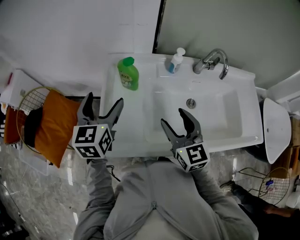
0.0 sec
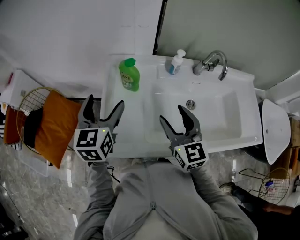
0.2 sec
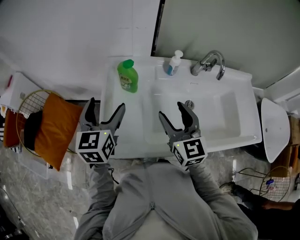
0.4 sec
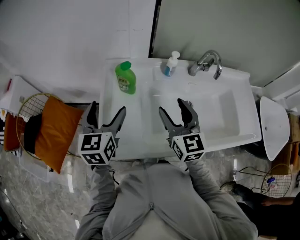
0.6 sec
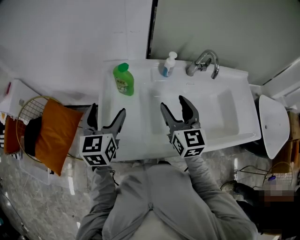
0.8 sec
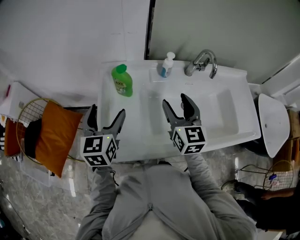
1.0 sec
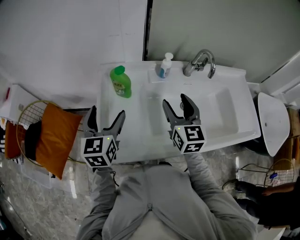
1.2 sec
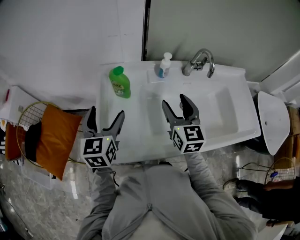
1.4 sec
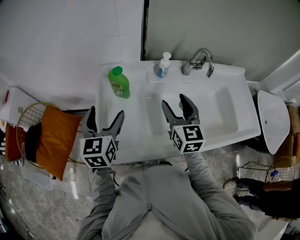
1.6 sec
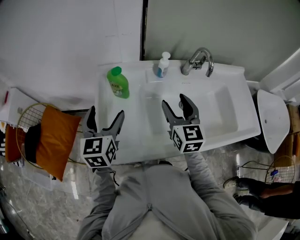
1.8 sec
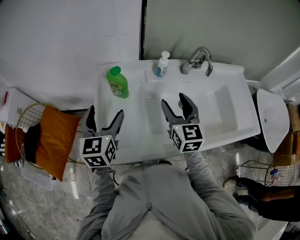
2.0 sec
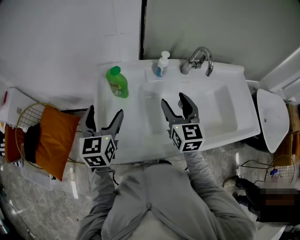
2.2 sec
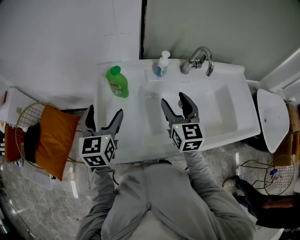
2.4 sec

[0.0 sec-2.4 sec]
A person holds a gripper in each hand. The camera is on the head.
0.0 sec to 1.2 sec: The right gripper travels forward by approximately 5 cm.
1.2 sec to 2.4 sec: Neither gripper changes place.

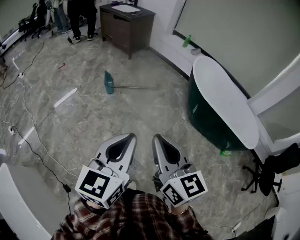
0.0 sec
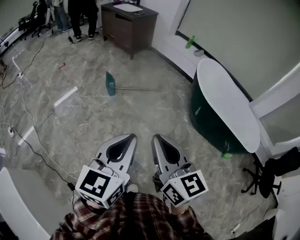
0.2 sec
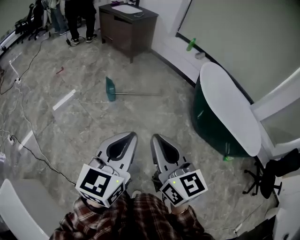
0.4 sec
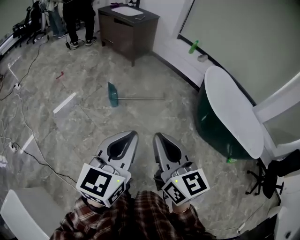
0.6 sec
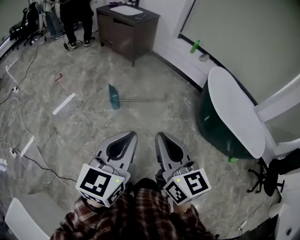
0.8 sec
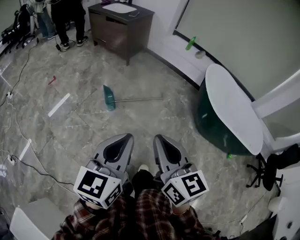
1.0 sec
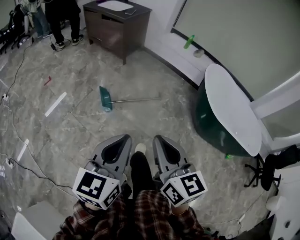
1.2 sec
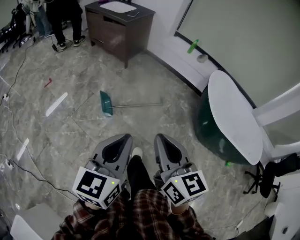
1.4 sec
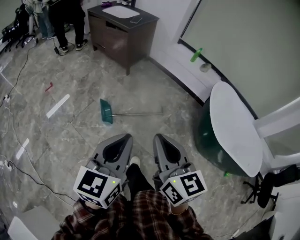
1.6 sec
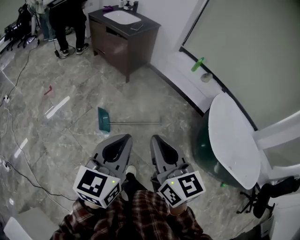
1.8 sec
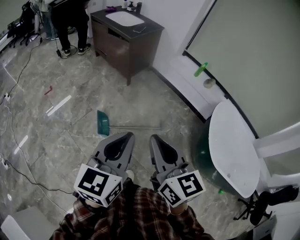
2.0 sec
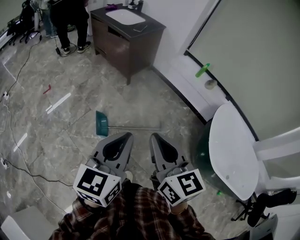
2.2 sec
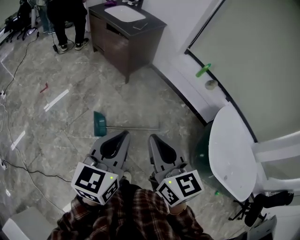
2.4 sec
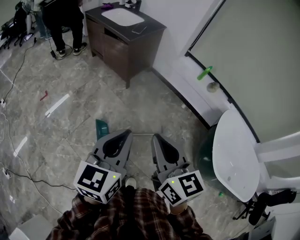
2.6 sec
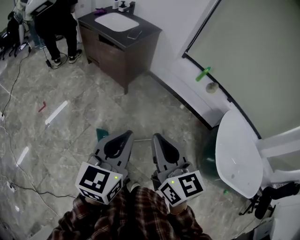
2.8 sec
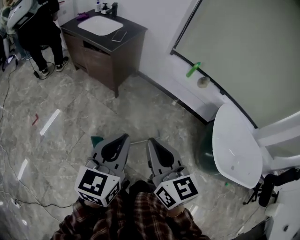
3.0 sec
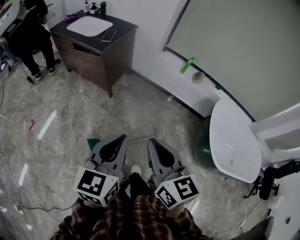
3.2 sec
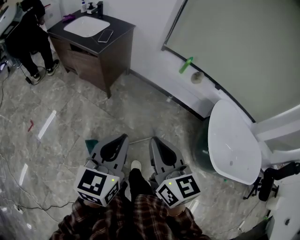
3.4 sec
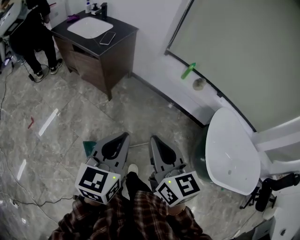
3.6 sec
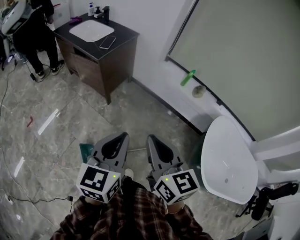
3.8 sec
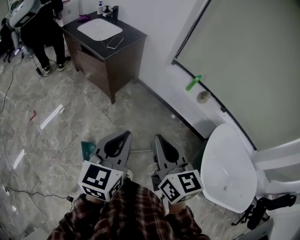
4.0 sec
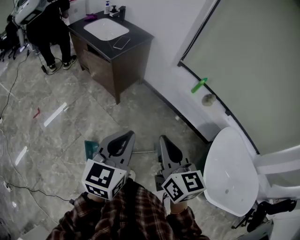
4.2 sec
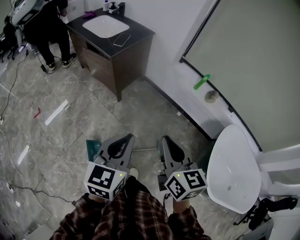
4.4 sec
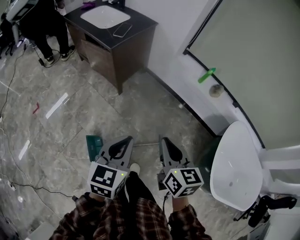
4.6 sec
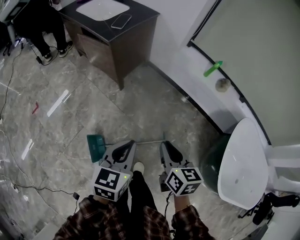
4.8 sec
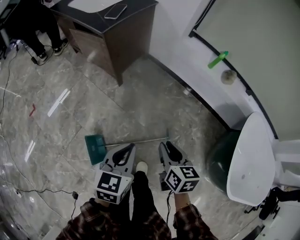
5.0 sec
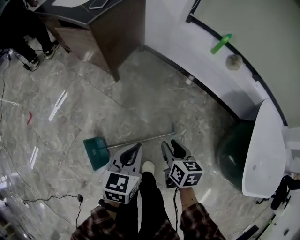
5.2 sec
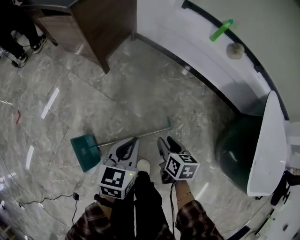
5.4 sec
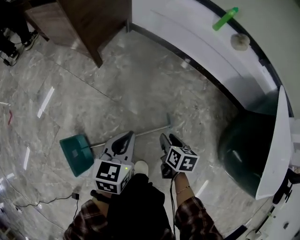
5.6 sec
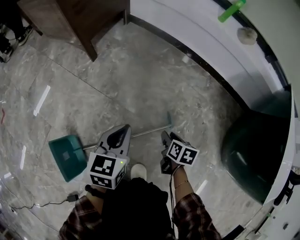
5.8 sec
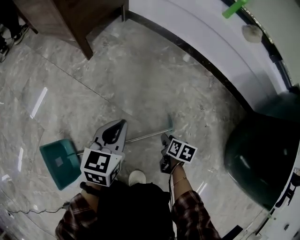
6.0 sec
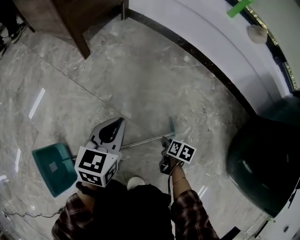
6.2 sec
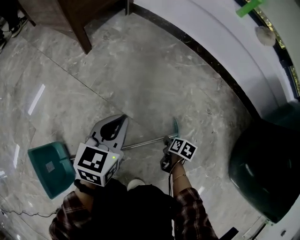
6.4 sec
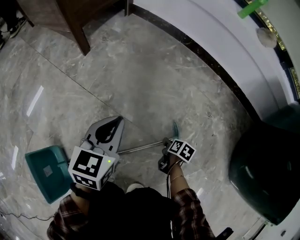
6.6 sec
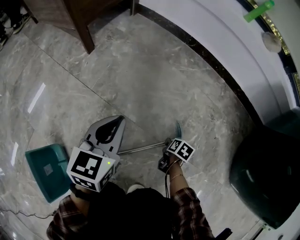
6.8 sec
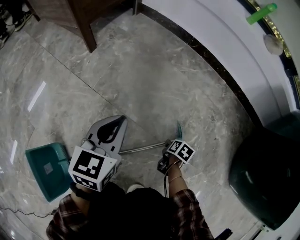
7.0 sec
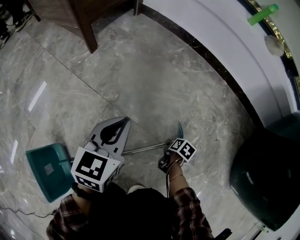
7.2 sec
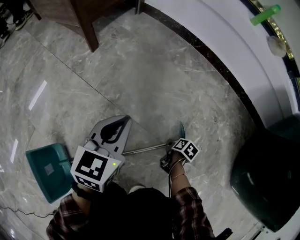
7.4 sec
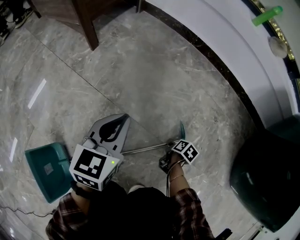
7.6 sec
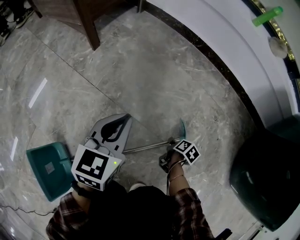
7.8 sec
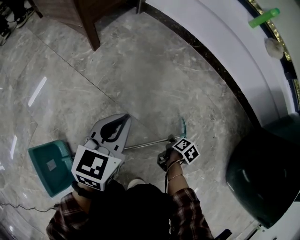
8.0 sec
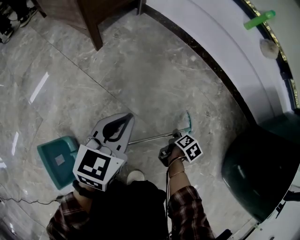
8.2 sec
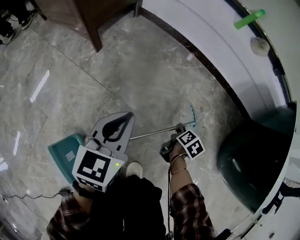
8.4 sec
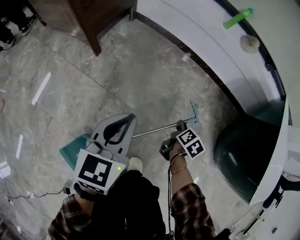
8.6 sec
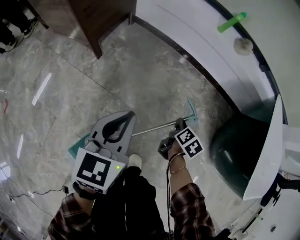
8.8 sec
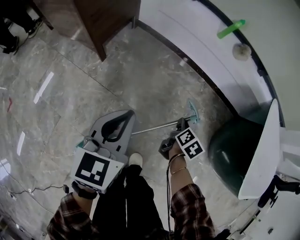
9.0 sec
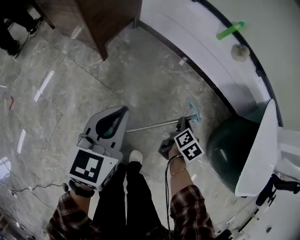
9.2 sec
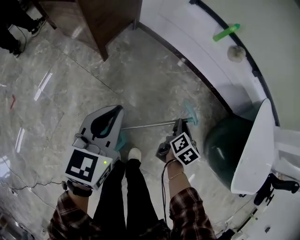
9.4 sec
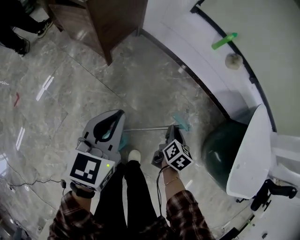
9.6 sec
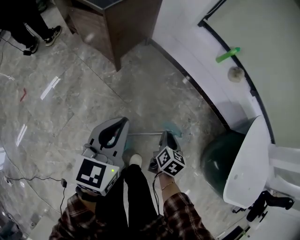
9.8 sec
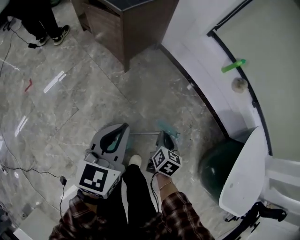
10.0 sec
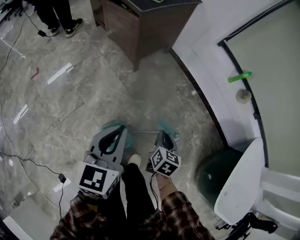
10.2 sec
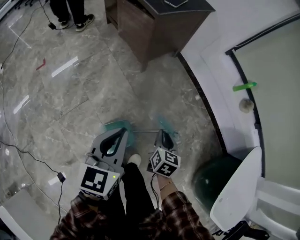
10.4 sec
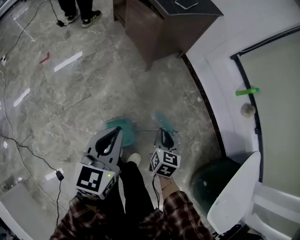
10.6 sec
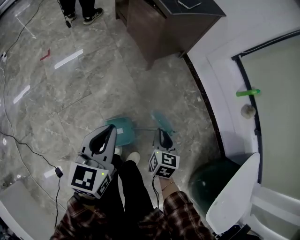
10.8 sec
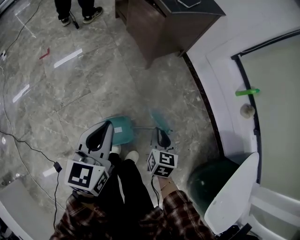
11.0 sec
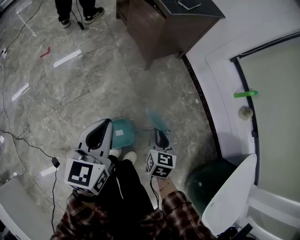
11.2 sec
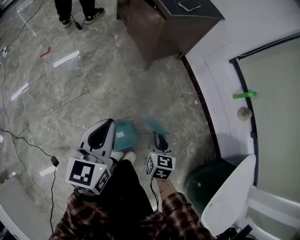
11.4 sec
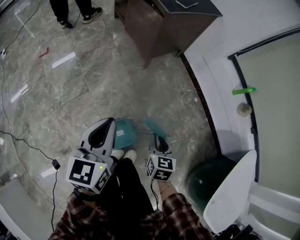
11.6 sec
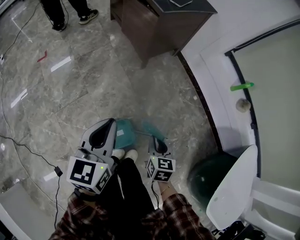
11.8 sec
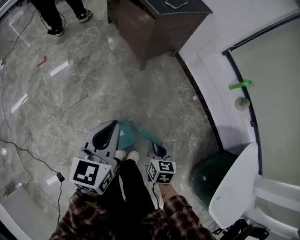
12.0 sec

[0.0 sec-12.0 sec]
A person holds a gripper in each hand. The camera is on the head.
0.0 sec to 1.6 sec: The pair of grippers is taken forward, some 50 cm.
1.6 sec to 3.0 sec: The grippers both shift forward by approximately 35 cm.
3.0 sec to 4.4 sec: Both grippers move forward and to the right, about 15 cm.
4.4 sec to 6.0 sec: The two grippers go approximately 80 cm downward. The right gripper points its fingers roughly 40 degrees further downward, and opens its fingers.
6.0 sec to 7.6 sec: The right gripper goes about 15 cm downward, and rotates roughly 20 degrees. Meanwhile the left gripper moves downward, about 5 cm.
7.6 sec to 9.0 sec: The grippers both shift upward by some 40 cm. The right gripper swivels some 30 degrees.
9.0 sec to 10.4 sec: The left gripper shifts by about 25 cm, and changes its angle by roughly 30 degrees. Meanwhile the right gripper ends up about 30 cm from where it was, and twists about 40 degrees counterclockwise, seen from behind.
10.4 sec to 12.0 sec: The right gripper travels backward by about 10 cm.

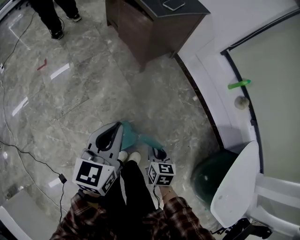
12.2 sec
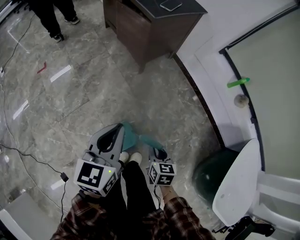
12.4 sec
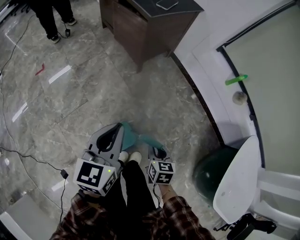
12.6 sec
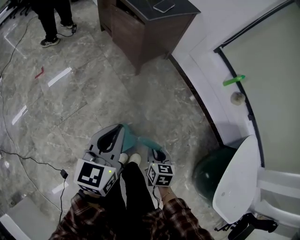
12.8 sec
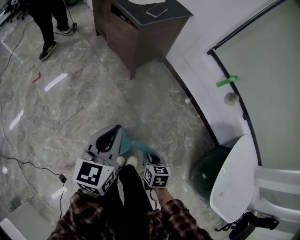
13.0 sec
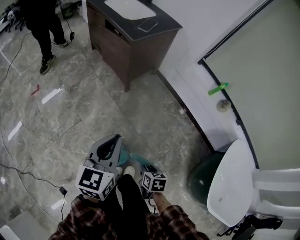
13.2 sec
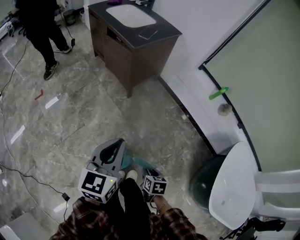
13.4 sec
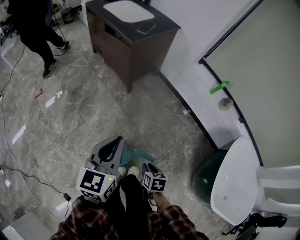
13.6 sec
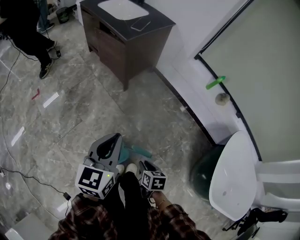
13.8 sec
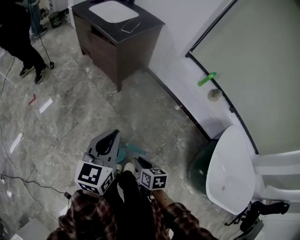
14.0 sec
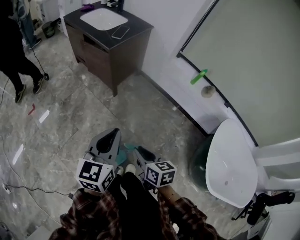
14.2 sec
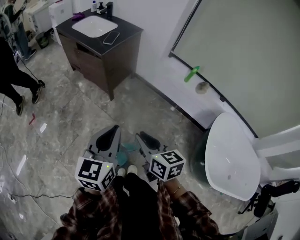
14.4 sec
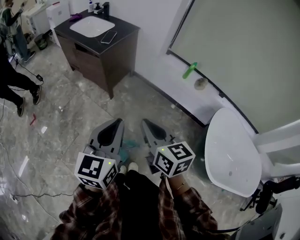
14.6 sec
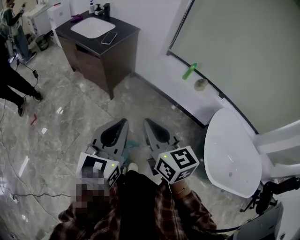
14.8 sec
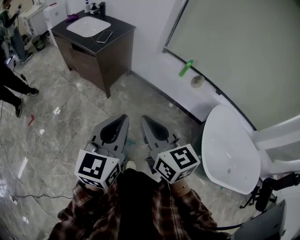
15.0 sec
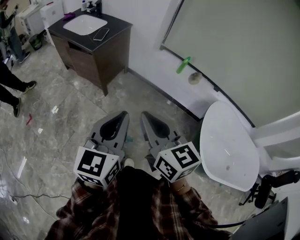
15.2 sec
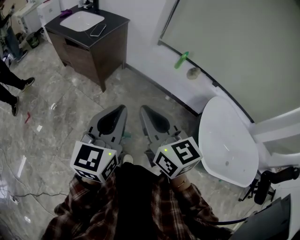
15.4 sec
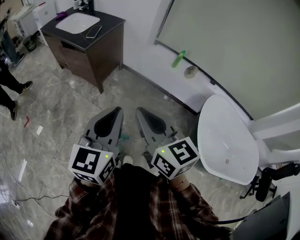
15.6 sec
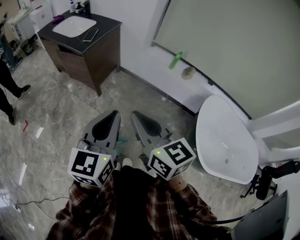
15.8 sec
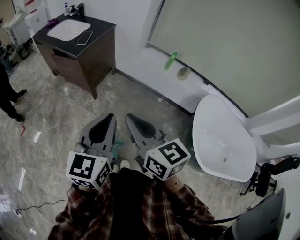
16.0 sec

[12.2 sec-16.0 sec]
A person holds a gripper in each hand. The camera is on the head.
12.2 sec to 13.4 sec: The left gripper shifts approximately 10 cm upward. The right gripper heads backward, covering roughly 5 cm.
13.4 sec to 14.8 sec: The left gripper is displaced upward and to the right by approximately 20 cm. The right gripper shifts about 40 cm upward, and tips its fingers upward by approximately 50 degrees.
14.8 sec to 16.0 sec: The grippers stay close to where they were, moving slightly.

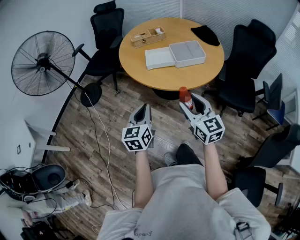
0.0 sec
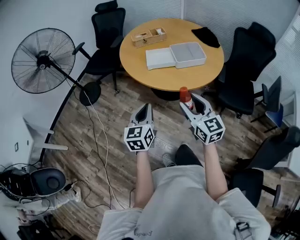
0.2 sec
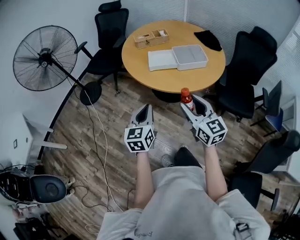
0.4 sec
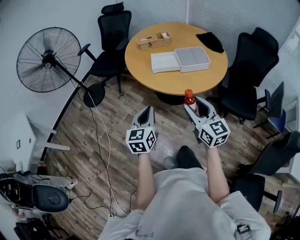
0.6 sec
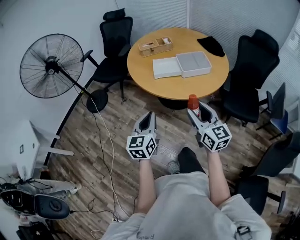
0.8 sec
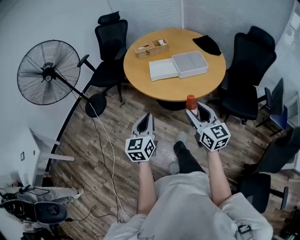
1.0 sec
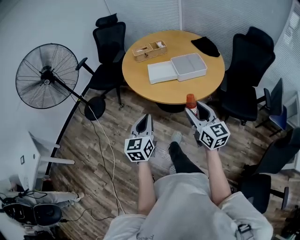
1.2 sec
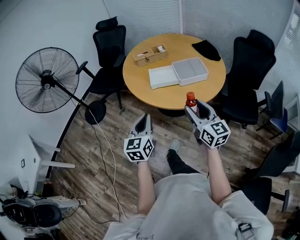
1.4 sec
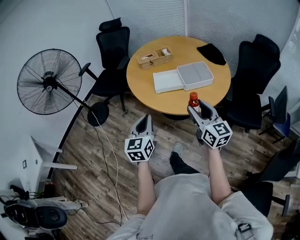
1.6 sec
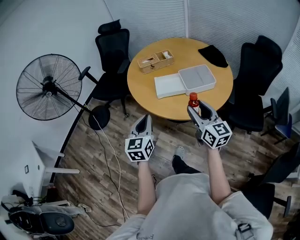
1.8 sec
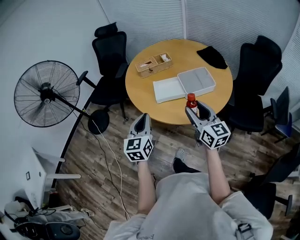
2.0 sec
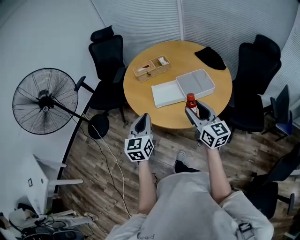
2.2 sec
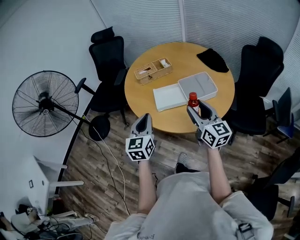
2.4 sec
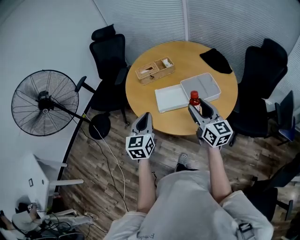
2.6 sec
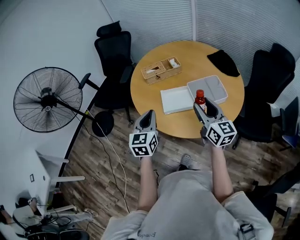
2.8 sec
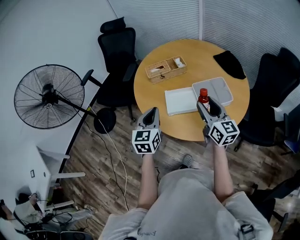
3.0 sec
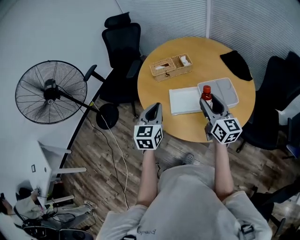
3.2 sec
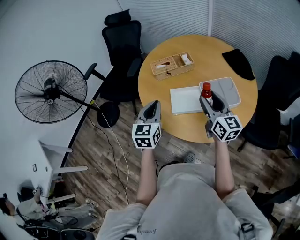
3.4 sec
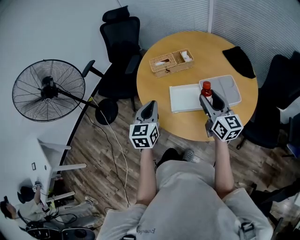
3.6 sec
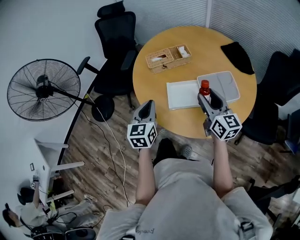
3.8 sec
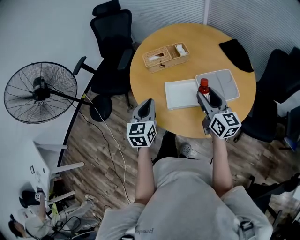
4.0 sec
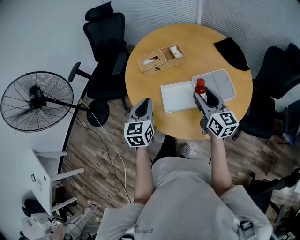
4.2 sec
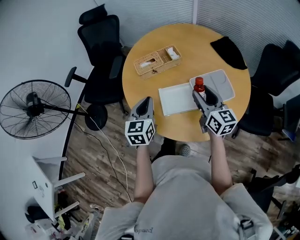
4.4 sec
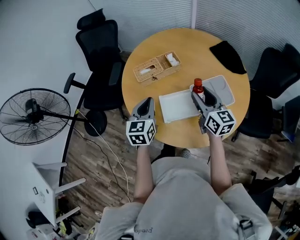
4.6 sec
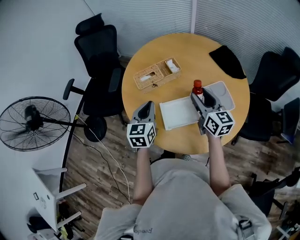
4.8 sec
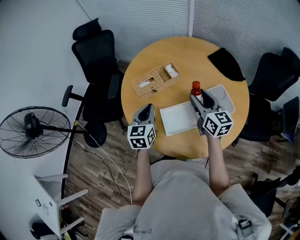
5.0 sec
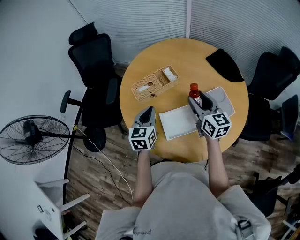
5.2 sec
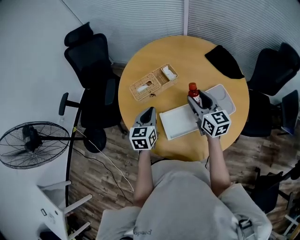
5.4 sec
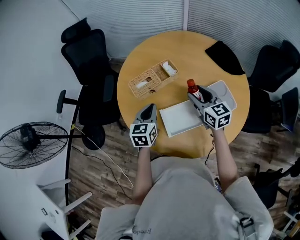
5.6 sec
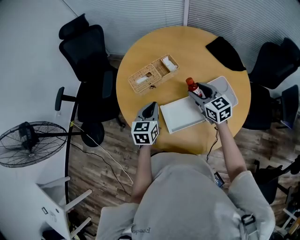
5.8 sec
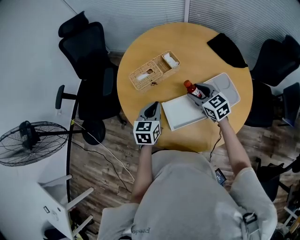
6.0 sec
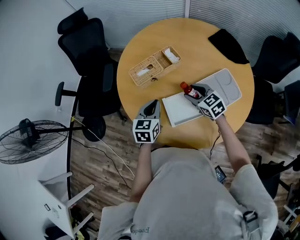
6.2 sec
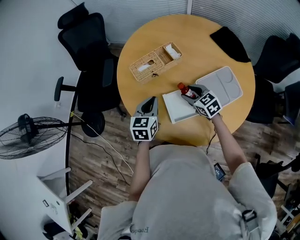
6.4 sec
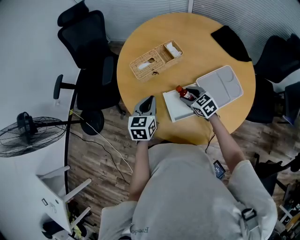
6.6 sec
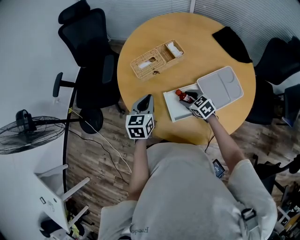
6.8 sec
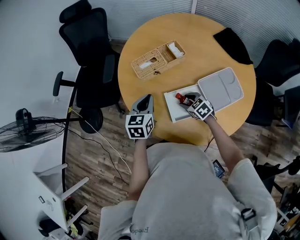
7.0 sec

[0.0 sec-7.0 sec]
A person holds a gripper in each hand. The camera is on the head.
0.0 sec to 1.4 sec: The grippers both shift forward by about 5 cm.
1.4 sec to 2.8 sec: Both grippers move forward, roughly 25 cm.
2.8 sec to 4.2 sec: The grippers both shift forward and downward by some 15 cm.
4.2 sec to 5.6 sec: The left gripper is displaced forward and downward by some 15 cm. The right gripper moves forward, about 15 cm.
5.6 sec to 7.0 sec: The left gripper shifts by some 5 cm. Meanwhile the right gripper is displaced downward and to the left by approximately 25 cm, and tips its fingers downward by about 30 degrees.
